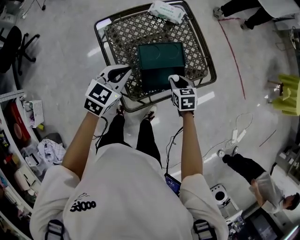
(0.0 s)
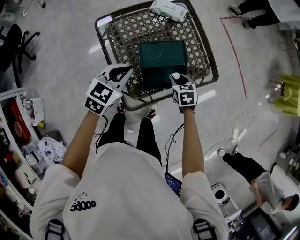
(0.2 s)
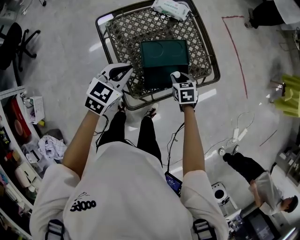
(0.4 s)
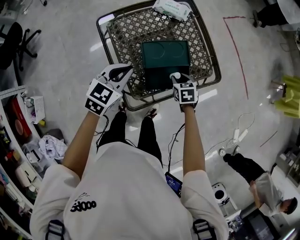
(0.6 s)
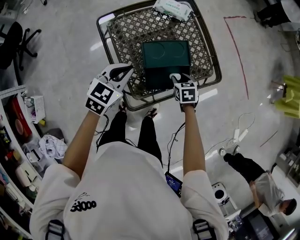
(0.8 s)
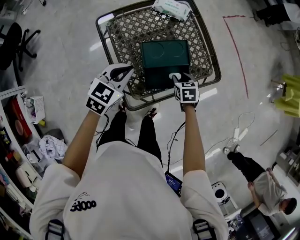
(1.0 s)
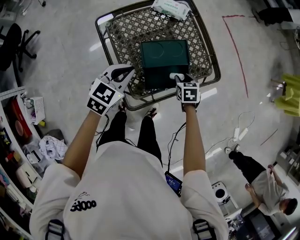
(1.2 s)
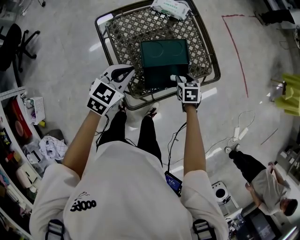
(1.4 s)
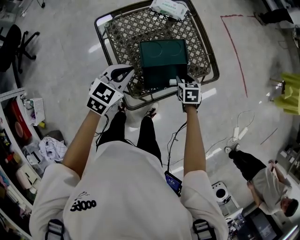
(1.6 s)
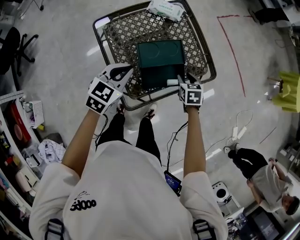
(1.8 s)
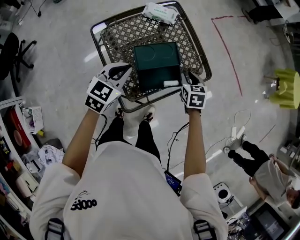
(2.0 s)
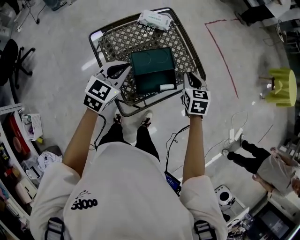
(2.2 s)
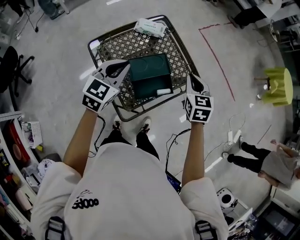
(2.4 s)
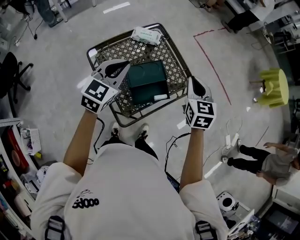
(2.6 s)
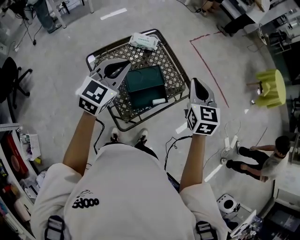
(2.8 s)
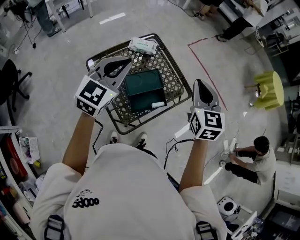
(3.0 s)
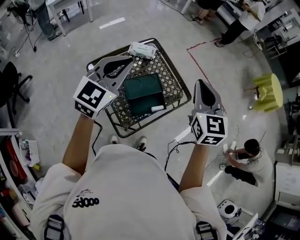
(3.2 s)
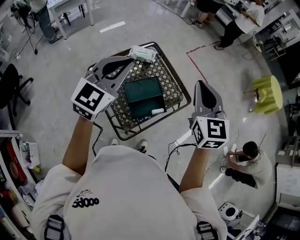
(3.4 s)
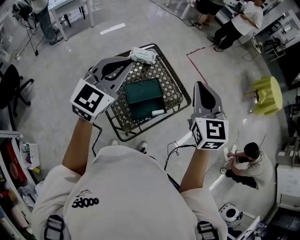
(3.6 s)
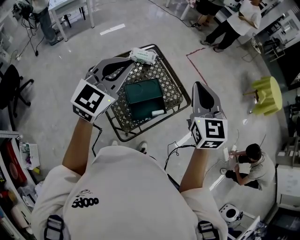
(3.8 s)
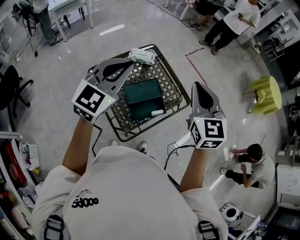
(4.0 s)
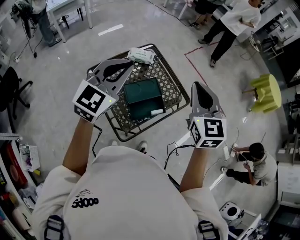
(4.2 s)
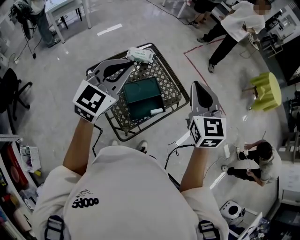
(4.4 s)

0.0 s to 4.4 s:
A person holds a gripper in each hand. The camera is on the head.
0.0 to 1.4 s: The right gripper changes place by about 5 cm.
1.4 to 3.0 s: The left gripper heads upward, covering about 25 cm, and swivels roughly 30 degrees. Meanwhile the right gripper goes about 40 cm upward, tilts its fingers roughly 40 degrees upward, and closes up.
3.0 to 4.4 s: The grippers both shift upward by approximately 5 cm.

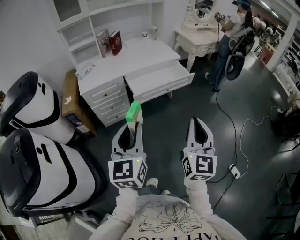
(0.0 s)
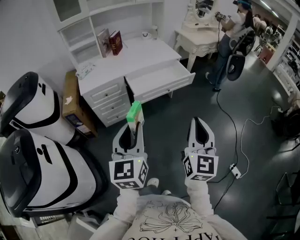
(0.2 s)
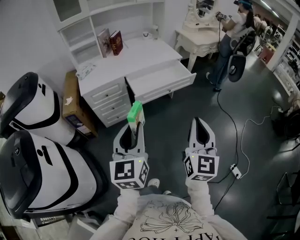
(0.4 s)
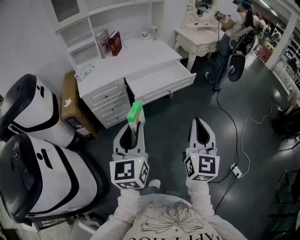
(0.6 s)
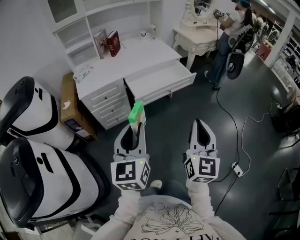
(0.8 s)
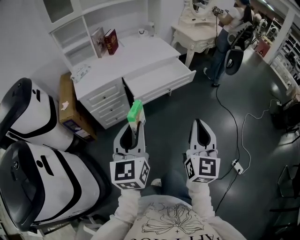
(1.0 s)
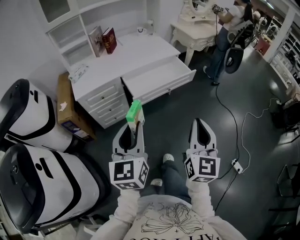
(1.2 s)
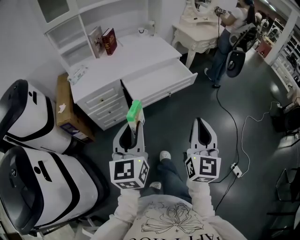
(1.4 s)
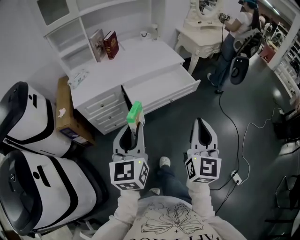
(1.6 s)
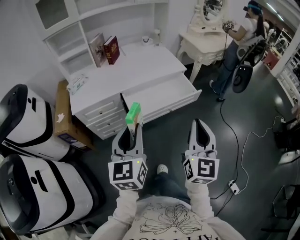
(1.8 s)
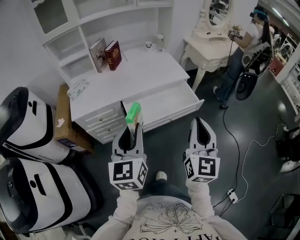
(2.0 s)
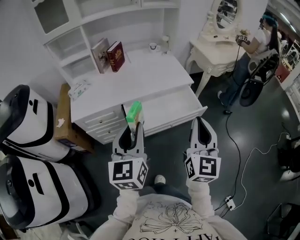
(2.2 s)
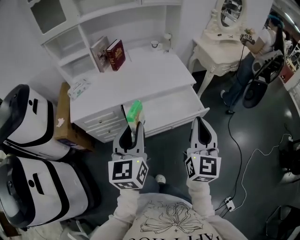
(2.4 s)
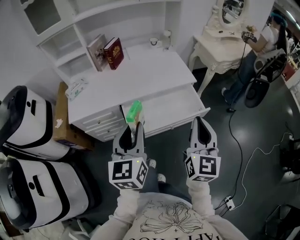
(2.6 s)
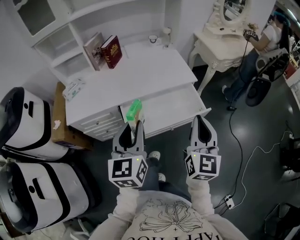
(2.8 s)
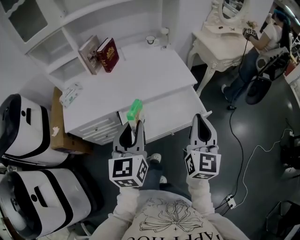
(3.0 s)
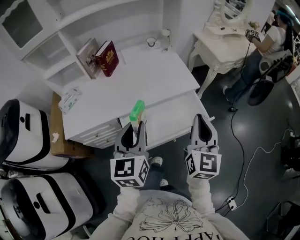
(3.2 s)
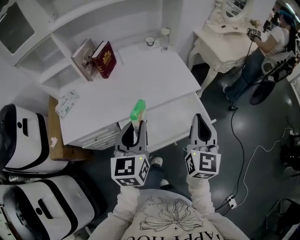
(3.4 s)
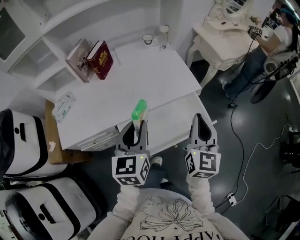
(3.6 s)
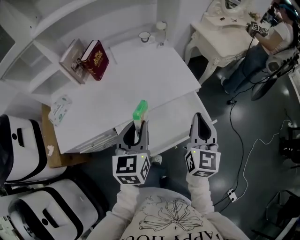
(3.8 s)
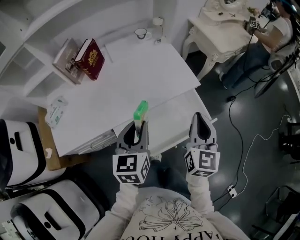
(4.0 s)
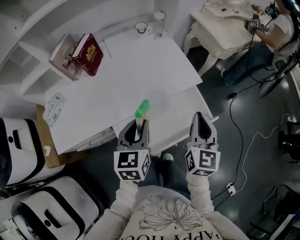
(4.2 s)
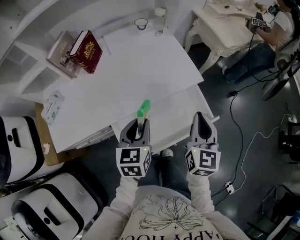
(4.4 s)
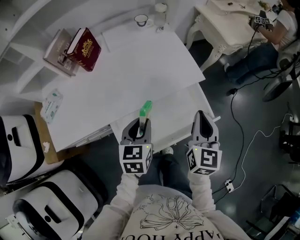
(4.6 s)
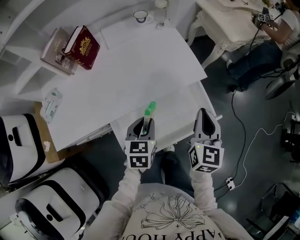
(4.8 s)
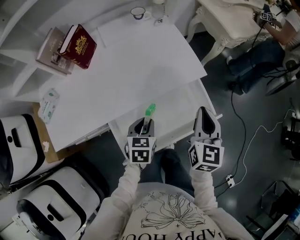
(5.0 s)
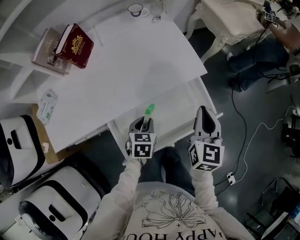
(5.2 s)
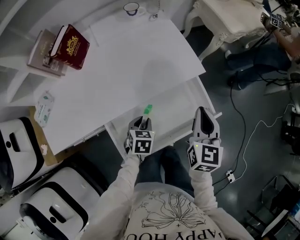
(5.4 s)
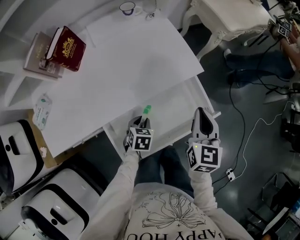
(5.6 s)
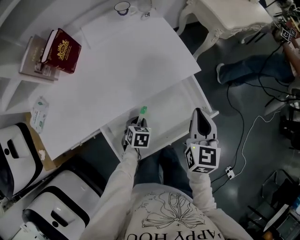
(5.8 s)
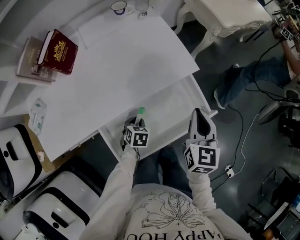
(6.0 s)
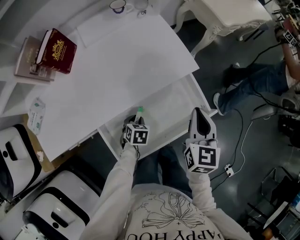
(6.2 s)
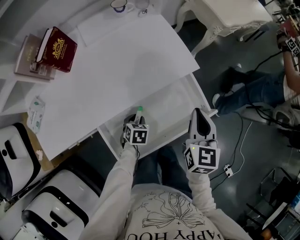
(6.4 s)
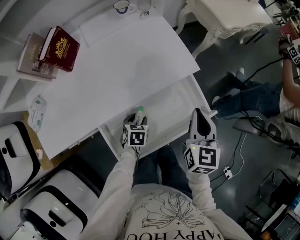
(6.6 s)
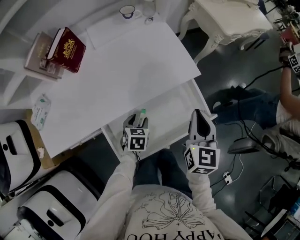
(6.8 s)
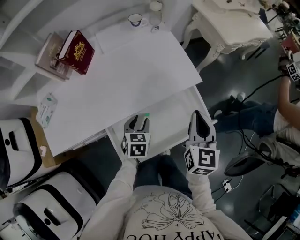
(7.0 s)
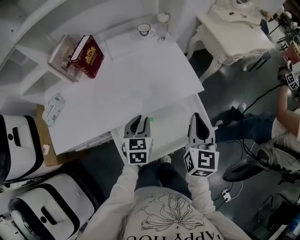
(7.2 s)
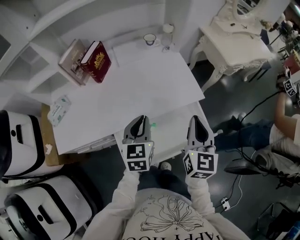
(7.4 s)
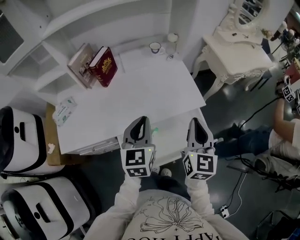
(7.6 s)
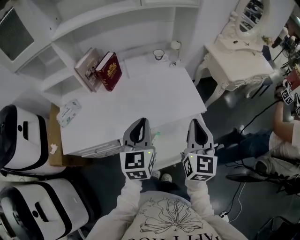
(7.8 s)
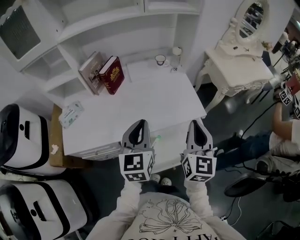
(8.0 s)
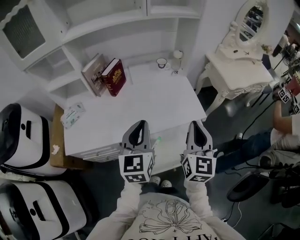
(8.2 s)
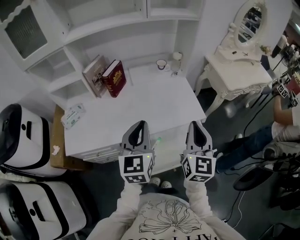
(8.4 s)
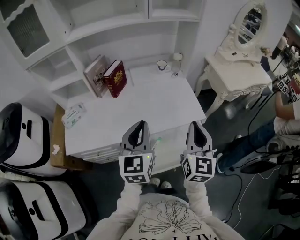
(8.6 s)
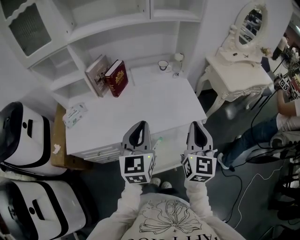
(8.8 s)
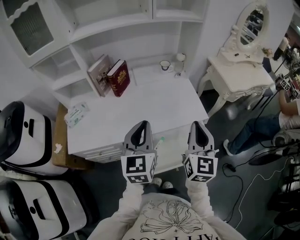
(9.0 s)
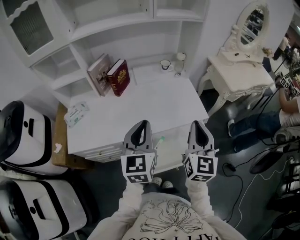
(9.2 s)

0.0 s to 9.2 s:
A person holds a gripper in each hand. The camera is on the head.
0.0 to 1.6 s: Both grippers move forward, about 15 cm.
1.6 to 3.0 s: The grippers both shift forward by some 35 cm.
3.0 to 4.6 s: Both grippers travel together forward and downward, approximately 25 cm. The left gripper changes its angle by some 30 degrees.
4.6 to 6.2 s: The right gripper moves downward, approximately 5 cm; the left gripper is displaced downward by some 25 cm, and points its fingers approximately 30 degrees further downward.
6.2 to 7.6 s: The left gripper moves upward, about 35 cm, points its fingers roughly 50 degrees further upward, and opens and closes again. The right gripper shifts roughly 15 cm upward and to the left, and swivels approximately 20 degrees.
7.6 to 9.2 s: Both grippers travel together upward, approximately 5 cm.

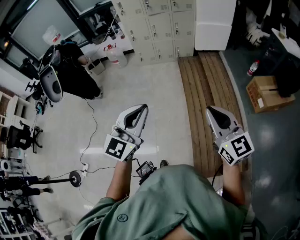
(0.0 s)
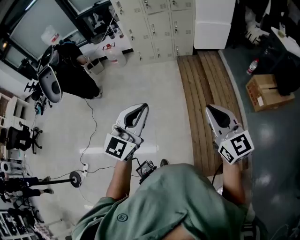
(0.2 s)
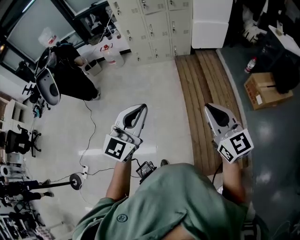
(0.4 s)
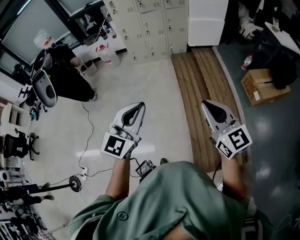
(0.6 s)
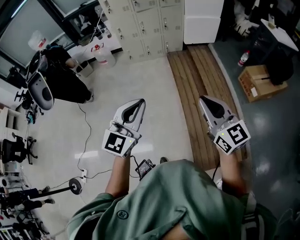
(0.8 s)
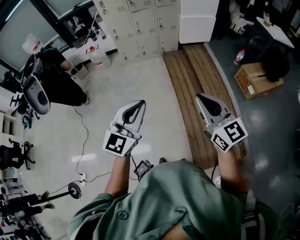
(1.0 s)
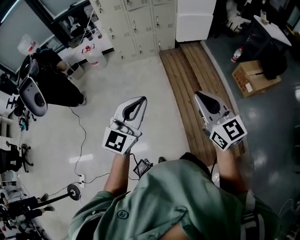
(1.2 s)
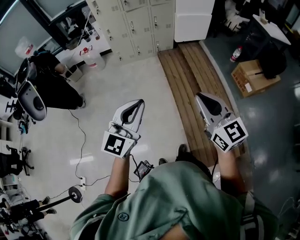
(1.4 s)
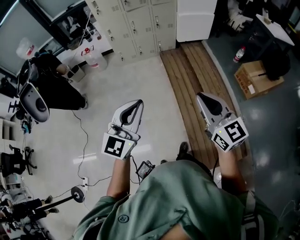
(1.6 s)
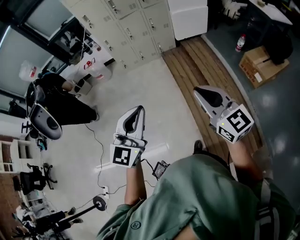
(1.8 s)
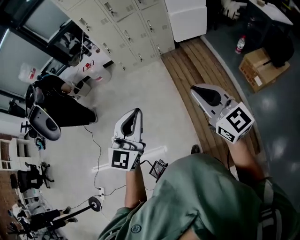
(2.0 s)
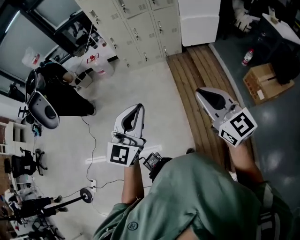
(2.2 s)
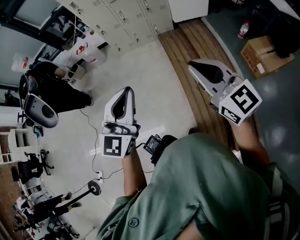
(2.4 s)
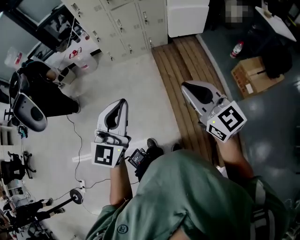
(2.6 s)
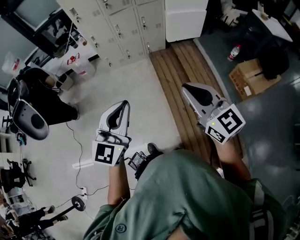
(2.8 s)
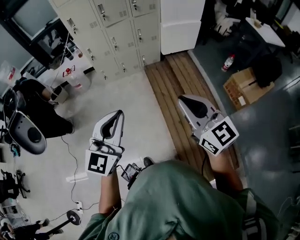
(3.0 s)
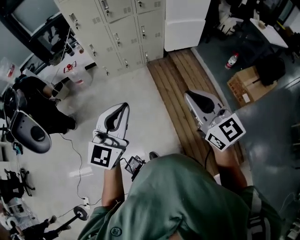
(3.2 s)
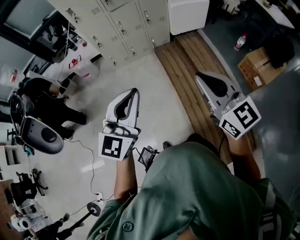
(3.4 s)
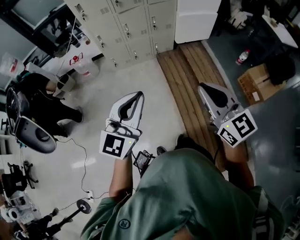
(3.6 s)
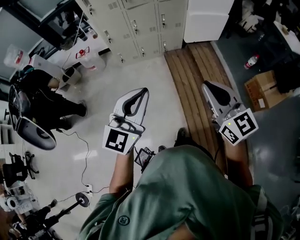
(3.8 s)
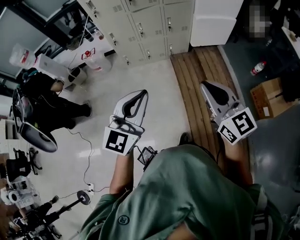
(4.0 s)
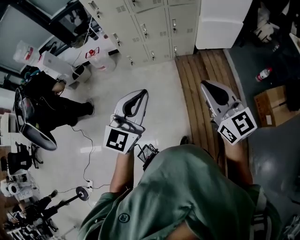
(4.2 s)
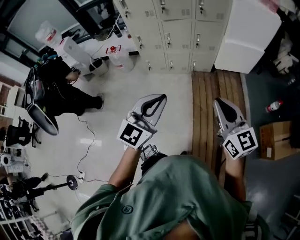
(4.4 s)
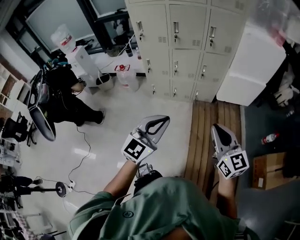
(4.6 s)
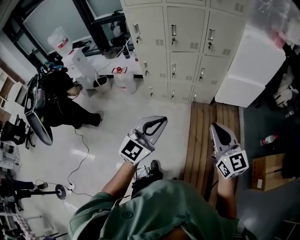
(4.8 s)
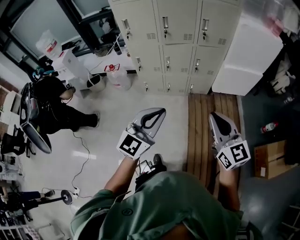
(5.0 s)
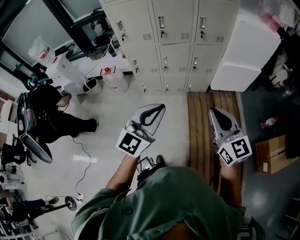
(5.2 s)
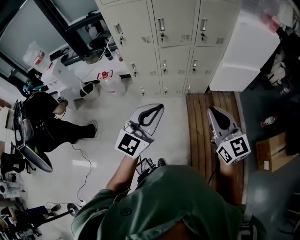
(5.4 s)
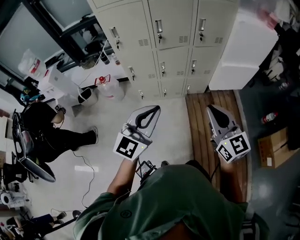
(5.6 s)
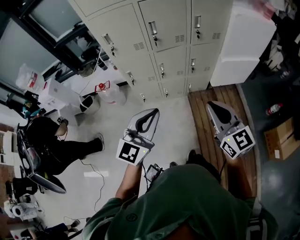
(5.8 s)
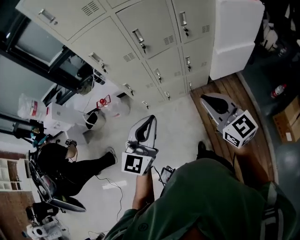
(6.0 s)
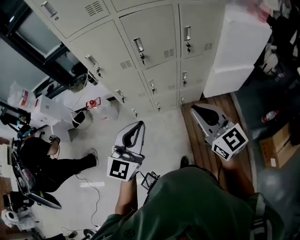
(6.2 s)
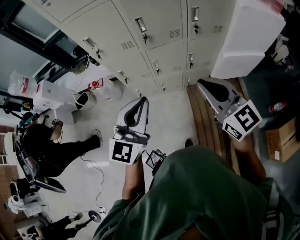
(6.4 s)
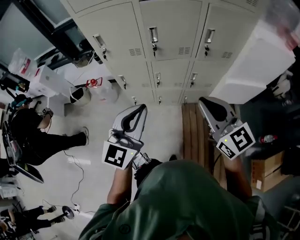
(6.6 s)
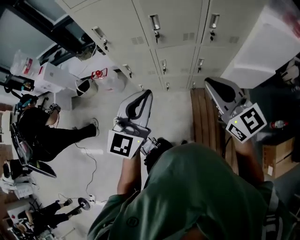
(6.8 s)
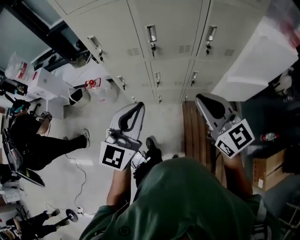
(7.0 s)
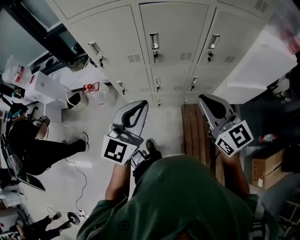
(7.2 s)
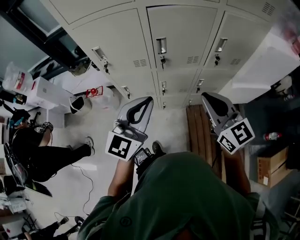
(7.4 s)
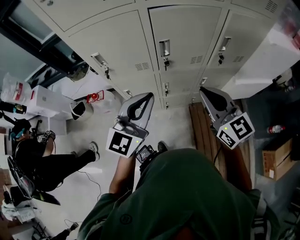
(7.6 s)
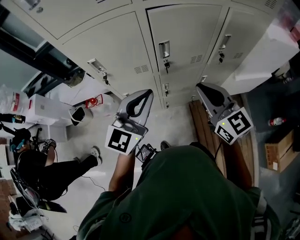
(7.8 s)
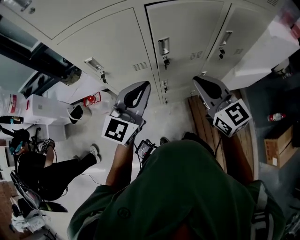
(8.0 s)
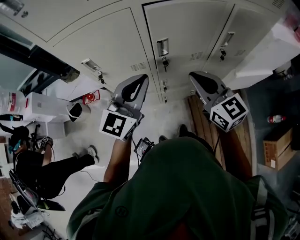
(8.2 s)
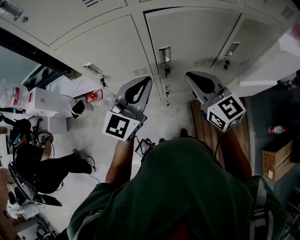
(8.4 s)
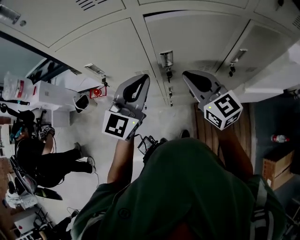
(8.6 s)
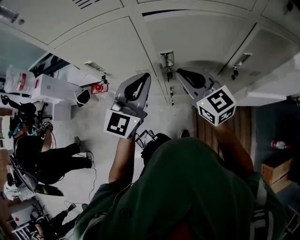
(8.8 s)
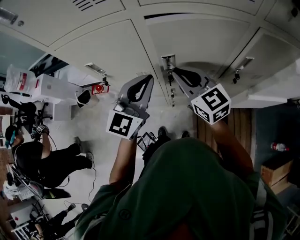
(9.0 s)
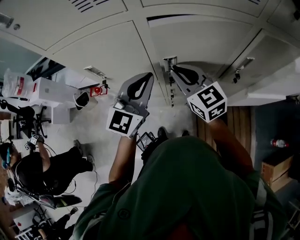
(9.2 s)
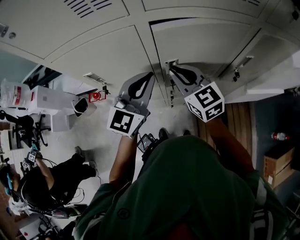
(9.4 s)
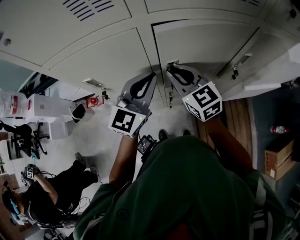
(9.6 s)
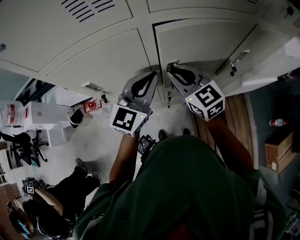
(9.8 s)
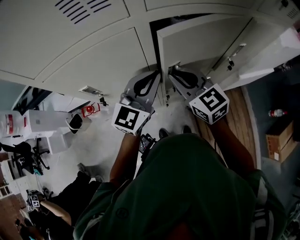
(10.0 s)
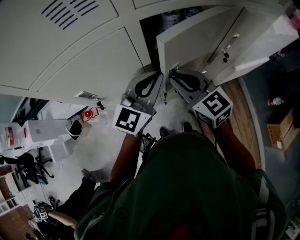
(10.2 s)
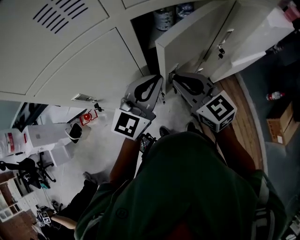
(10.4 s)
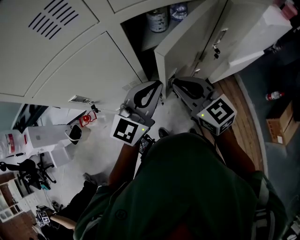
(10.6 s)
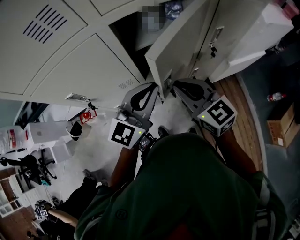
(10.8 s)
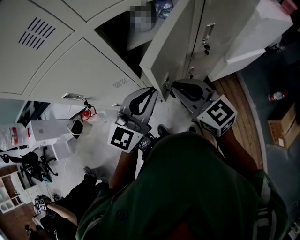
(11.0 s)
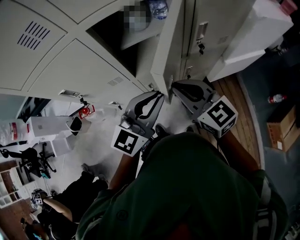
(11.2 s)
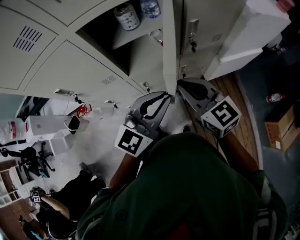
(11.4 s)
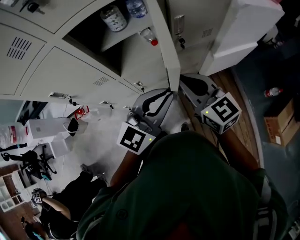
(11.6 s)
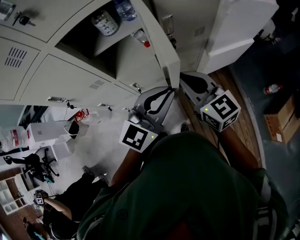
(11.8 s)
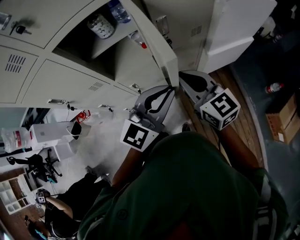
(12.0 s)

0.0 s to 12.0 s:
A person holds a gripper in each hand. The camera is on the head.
0.0 to 1.6 s: The left gripper moves forward, some 10 cm; the right gripper heads forward and to the left, covering about 10 cm.
1.6 to 3.0 s: The grippers both shift forward by roughly 15 cm.
3.0 to 4.4 s: The two grippers go some 25 cm forward.
4.4 to 6.0 s: Both grippers travel together forward and to the left, roughly 30 cm.
6.0 to 7.6 s: Both grippers move forward, some 25 cm.
7.6 to 9.0 s: The grippers both shift forward by about 15 cm.
9.0 to 10.4 s: The left gripper swivels approximately 30 degrees.
10.4 to 12.0 s: The two grippers go roughly 25 cm to the right.
